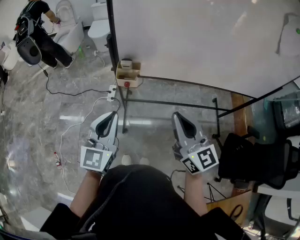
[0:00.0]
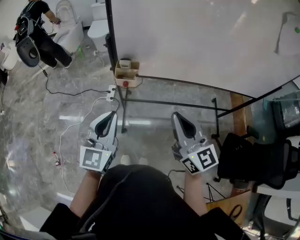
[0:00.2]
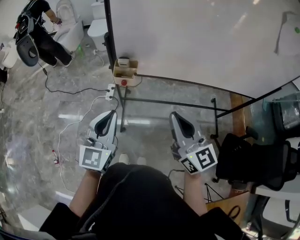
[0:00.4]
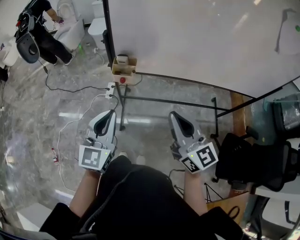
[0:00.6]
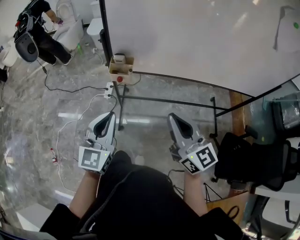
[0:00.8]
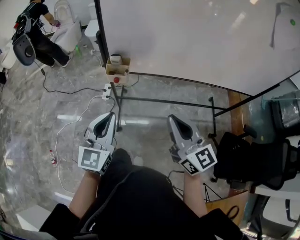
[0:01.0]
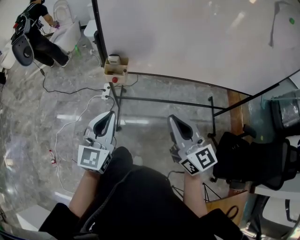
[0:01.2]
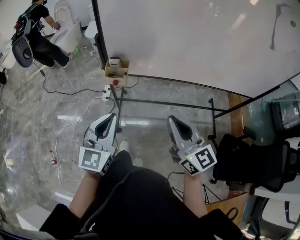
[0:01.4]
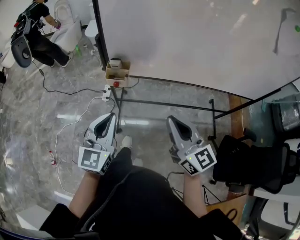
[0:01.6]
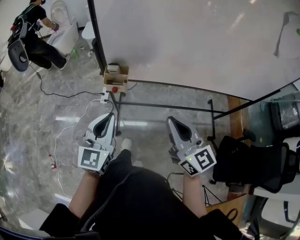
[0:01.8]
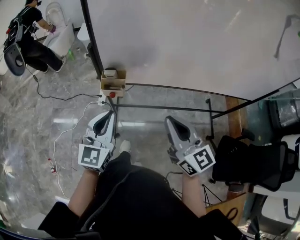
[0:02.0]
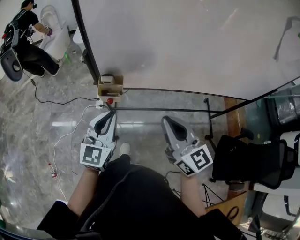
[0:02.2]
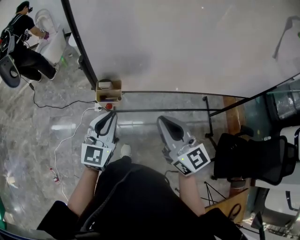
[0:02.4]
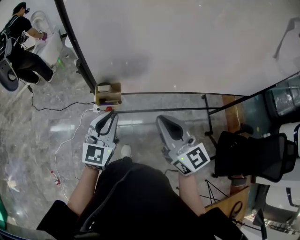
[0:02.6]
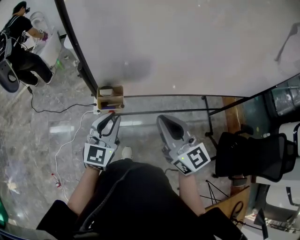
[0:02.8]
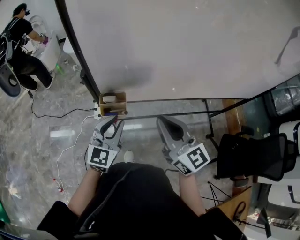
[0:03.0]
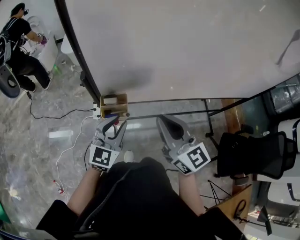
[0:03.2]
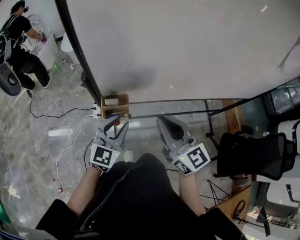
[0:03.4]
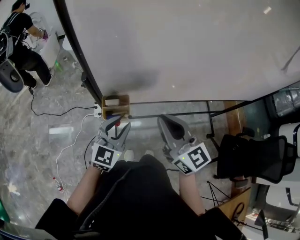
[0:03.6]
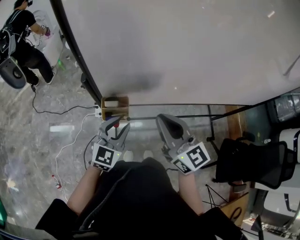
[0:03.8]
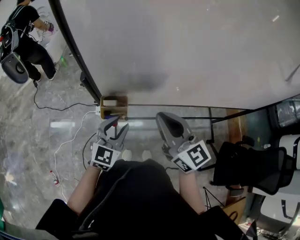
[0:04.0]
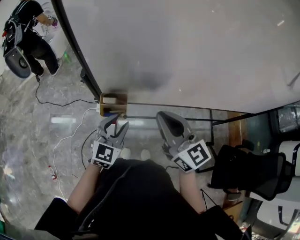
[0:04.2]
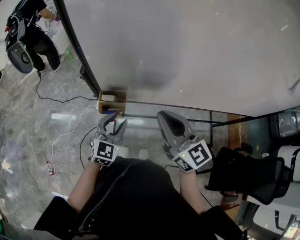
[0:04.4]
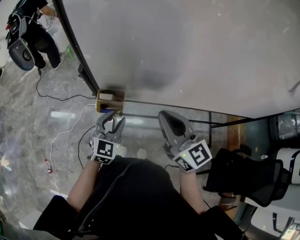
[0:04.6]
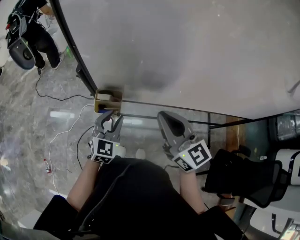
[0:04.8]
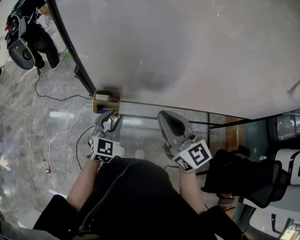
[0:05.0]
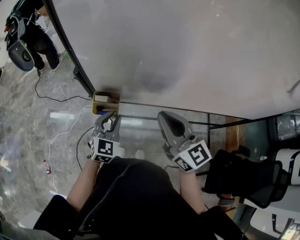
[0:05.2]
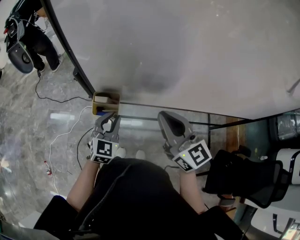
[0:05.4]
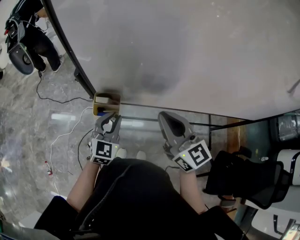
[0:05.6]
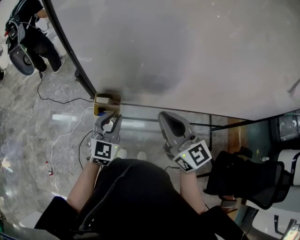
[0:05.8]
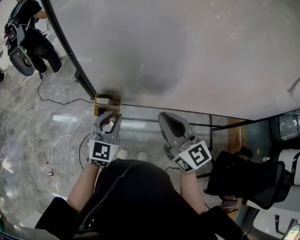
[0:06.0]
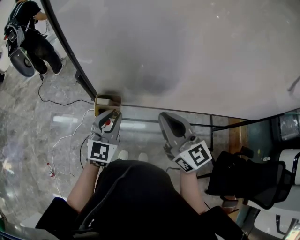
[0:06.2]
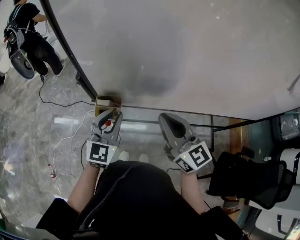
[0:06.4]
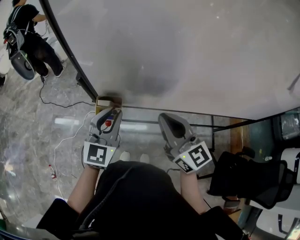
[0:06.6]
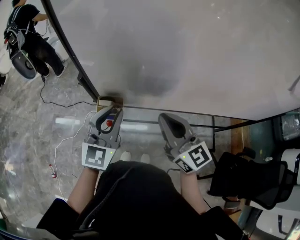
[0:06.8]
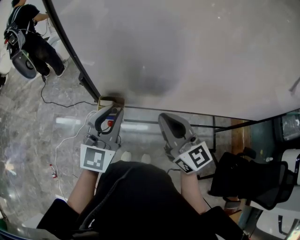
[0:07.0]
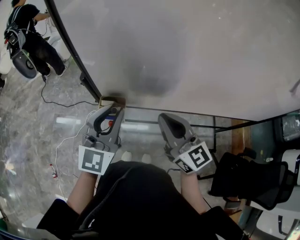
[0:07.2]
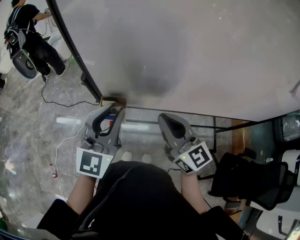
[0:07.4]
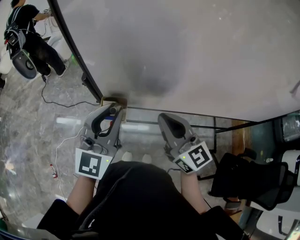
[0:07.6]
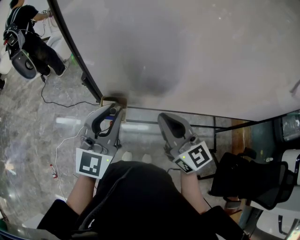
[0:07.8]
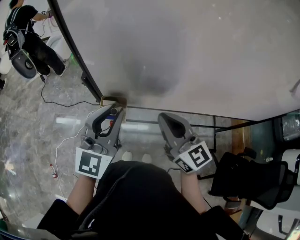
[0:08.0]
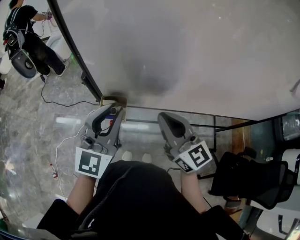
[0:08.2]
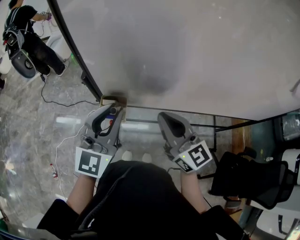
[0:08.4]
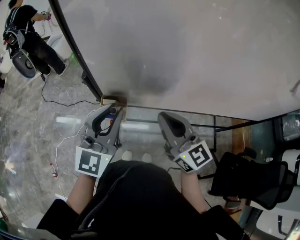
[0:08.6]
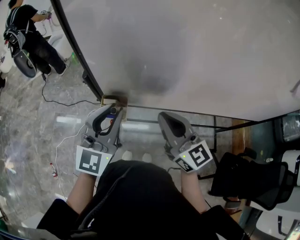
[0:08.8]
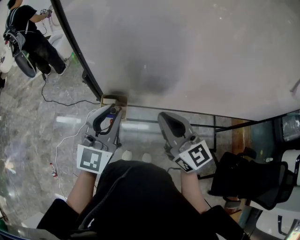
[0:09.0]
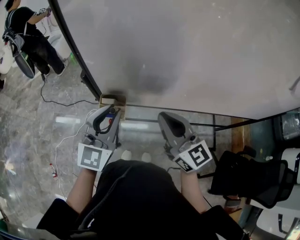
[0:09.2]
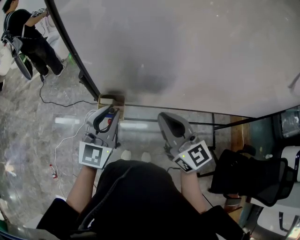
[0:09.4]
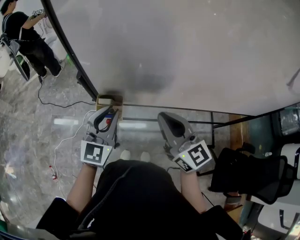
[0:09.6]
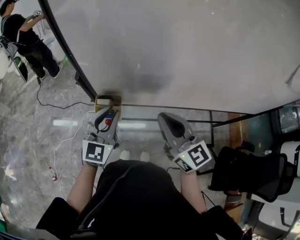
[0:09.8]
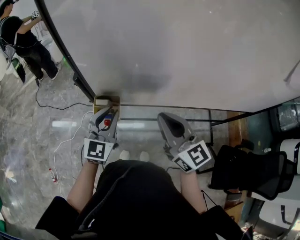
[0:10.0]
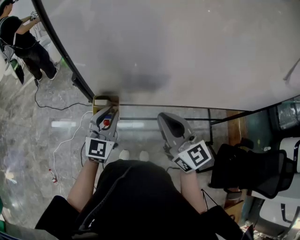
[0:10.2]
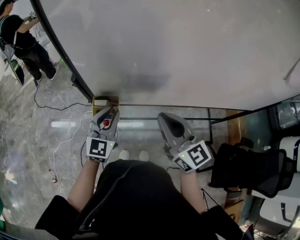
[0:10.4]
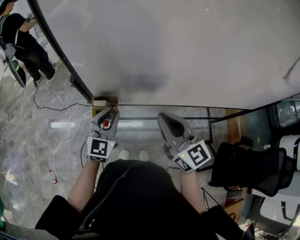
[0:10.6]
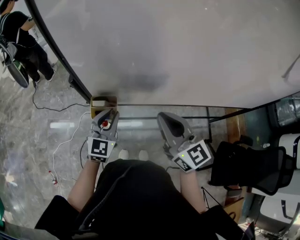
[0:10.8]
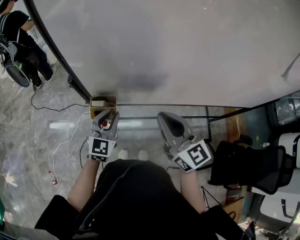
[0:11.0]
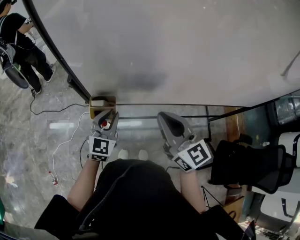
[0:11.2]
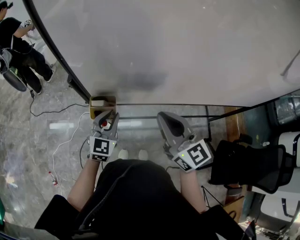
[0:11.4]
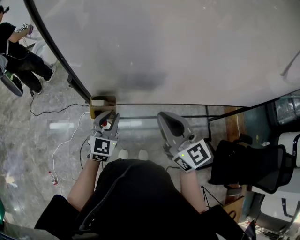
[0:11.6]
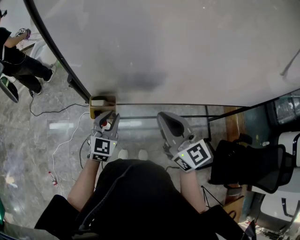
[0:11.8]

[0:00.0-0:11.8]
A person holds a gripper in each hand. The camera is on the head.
0:00.0 to 0:01.4: The left gripper travels to the right by roughly 5 cm. The right gripper shifts by roughly 5 cm.
0:01.4 to 0:03.0: Both grippers travel together forward, about 20 cm.
0:03.0 to 0:04.4: The right gripper shifts roughly 5 cm forward; the left gripper heads downward, covering roughly 5 cm.
0:04.4 to 0:06.0: The left gripper travels upward by about 5 cm, and closes.
0:06.0 to 0:07.4: The left gripper shifts approximately 15 cm upward.
0:07.4 to 0:08.8: Both grippers stay about where they are.
0:08.8 to 0:10.4: The left gripper shifts some 15 cm downward.
0:10.4 to 0:11.8: The left gripper moves downward, about 5 cm.

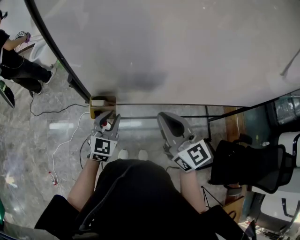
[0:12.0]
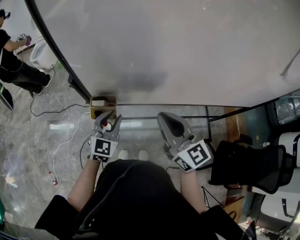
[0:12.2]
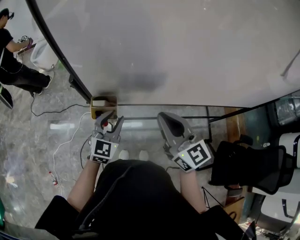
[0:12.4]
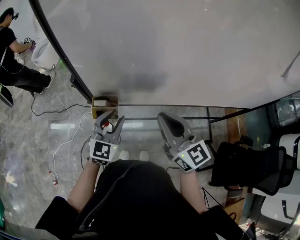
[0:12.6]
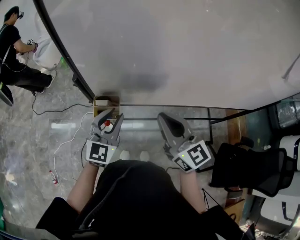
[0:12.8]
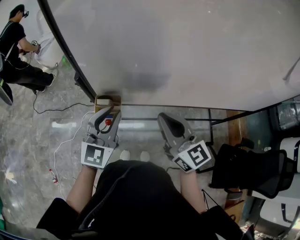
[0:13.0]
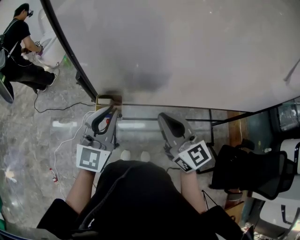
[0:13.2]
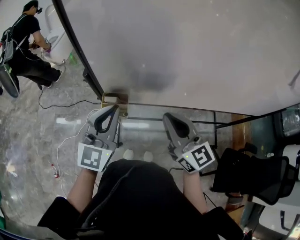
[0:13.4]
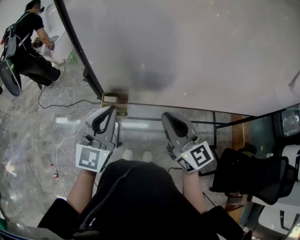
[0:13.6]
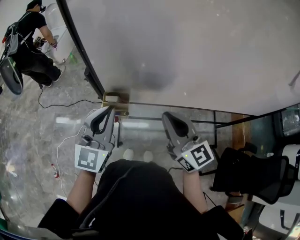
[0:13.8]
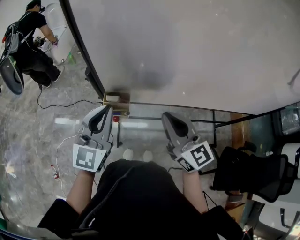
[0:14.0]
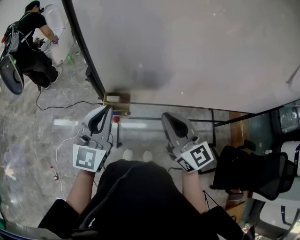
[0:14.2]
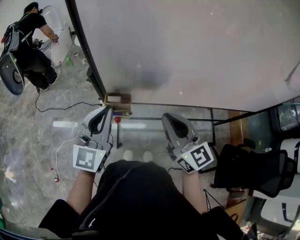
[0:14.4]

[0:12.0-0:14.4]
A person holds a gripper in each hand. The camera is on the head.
0:12.0 to 0:13.2: The left gripper heads upward, covering approximately 15 cm, and swivels about 20 degrees.
0:13.2 to 0:14.4: The left gripper travels to the left by about 5 cm.

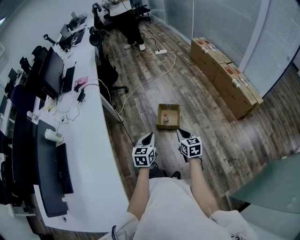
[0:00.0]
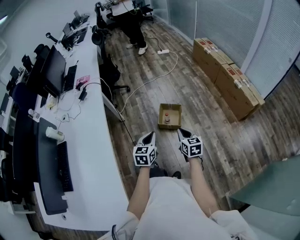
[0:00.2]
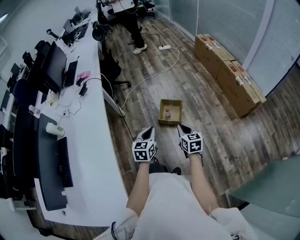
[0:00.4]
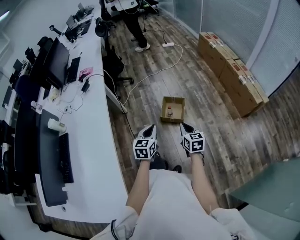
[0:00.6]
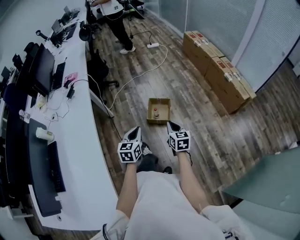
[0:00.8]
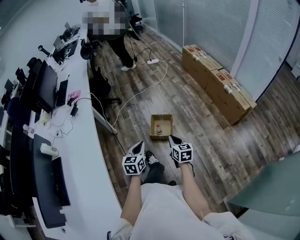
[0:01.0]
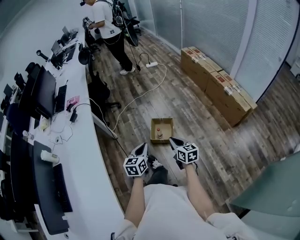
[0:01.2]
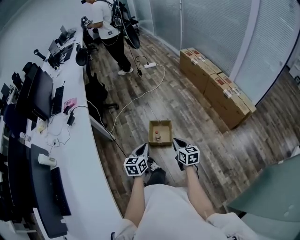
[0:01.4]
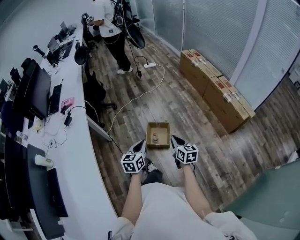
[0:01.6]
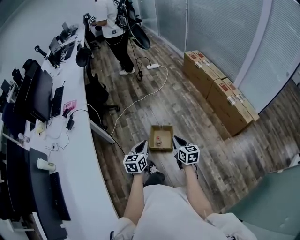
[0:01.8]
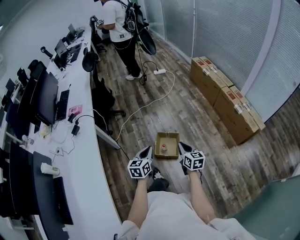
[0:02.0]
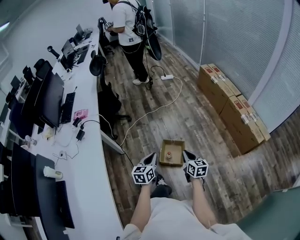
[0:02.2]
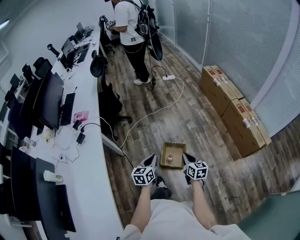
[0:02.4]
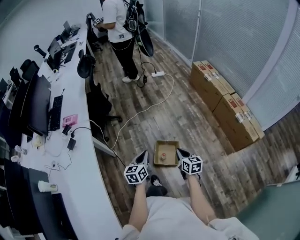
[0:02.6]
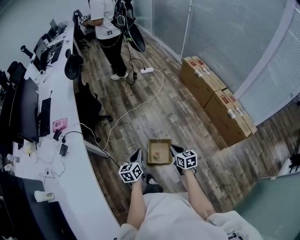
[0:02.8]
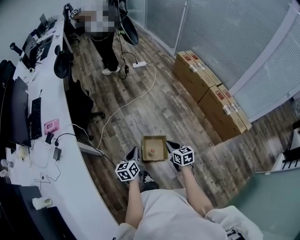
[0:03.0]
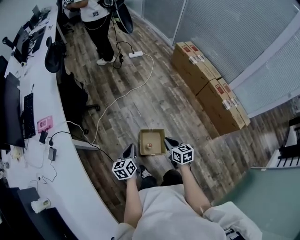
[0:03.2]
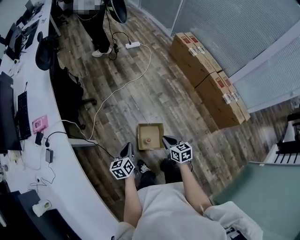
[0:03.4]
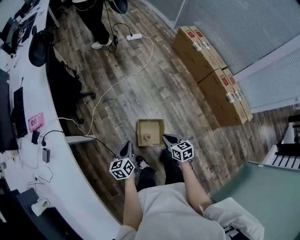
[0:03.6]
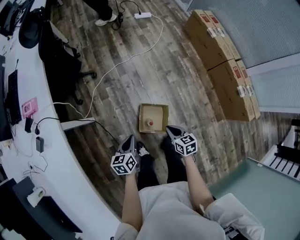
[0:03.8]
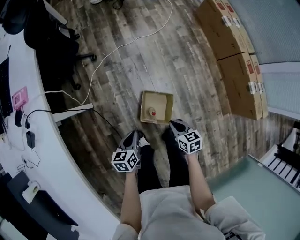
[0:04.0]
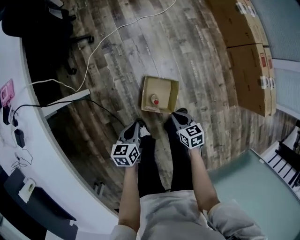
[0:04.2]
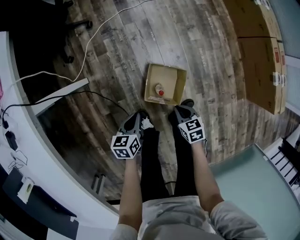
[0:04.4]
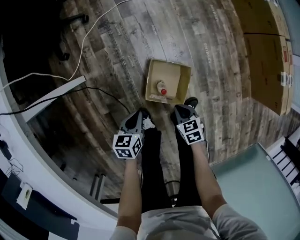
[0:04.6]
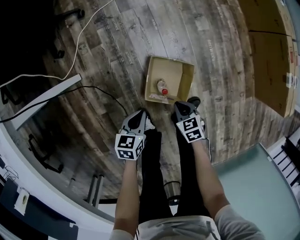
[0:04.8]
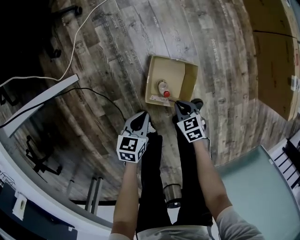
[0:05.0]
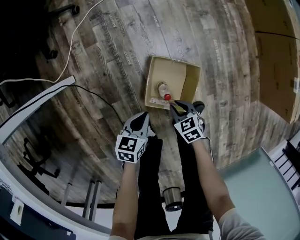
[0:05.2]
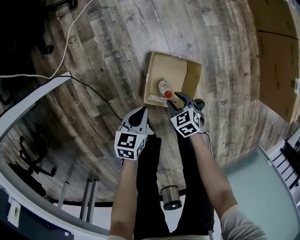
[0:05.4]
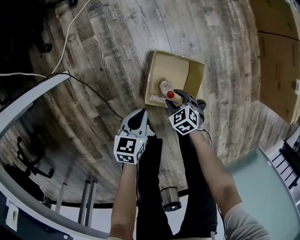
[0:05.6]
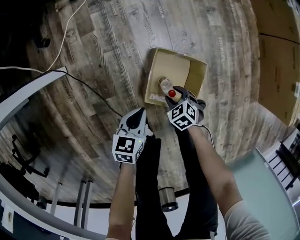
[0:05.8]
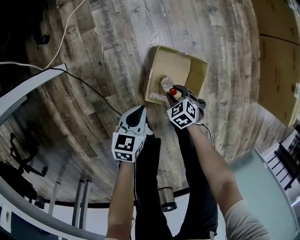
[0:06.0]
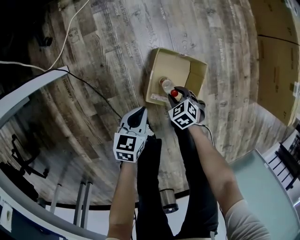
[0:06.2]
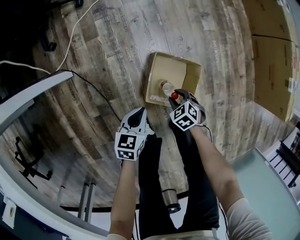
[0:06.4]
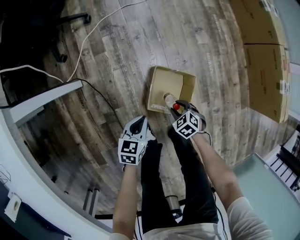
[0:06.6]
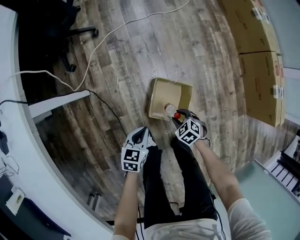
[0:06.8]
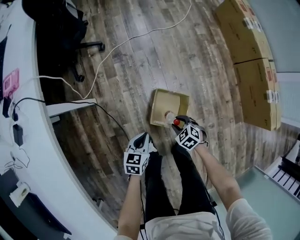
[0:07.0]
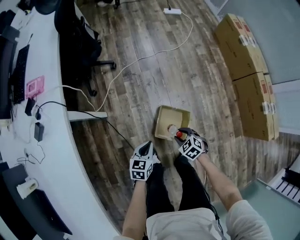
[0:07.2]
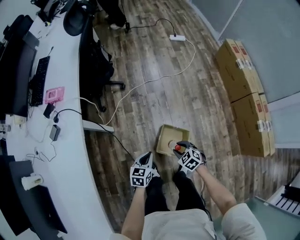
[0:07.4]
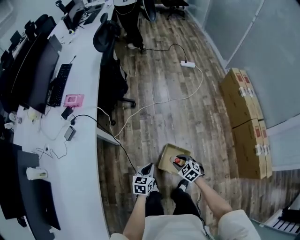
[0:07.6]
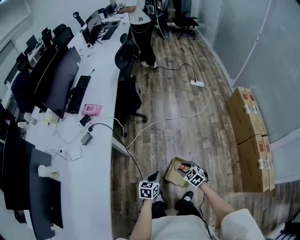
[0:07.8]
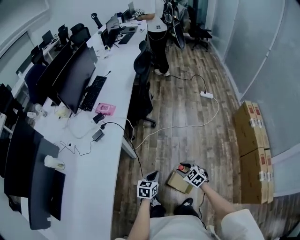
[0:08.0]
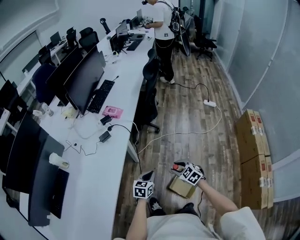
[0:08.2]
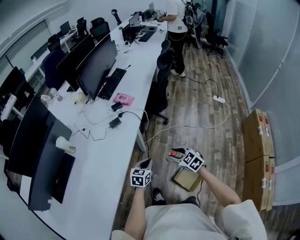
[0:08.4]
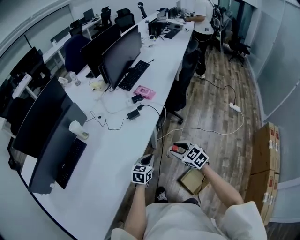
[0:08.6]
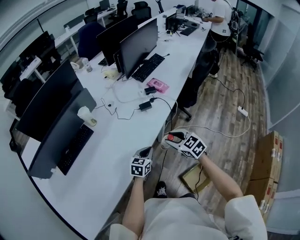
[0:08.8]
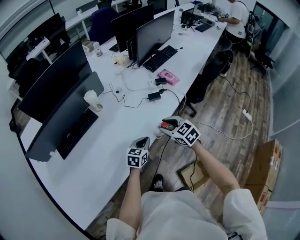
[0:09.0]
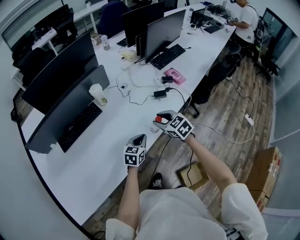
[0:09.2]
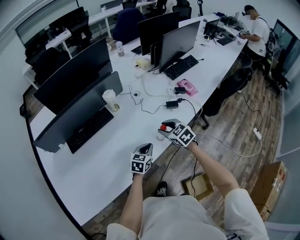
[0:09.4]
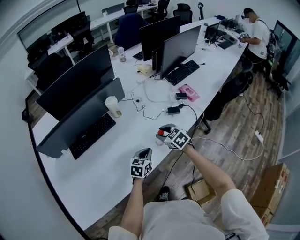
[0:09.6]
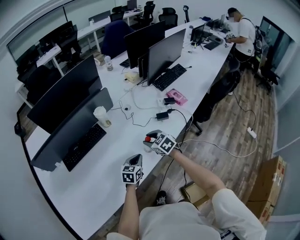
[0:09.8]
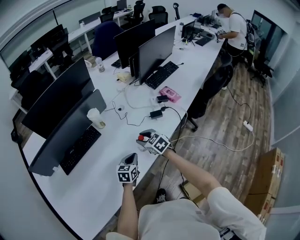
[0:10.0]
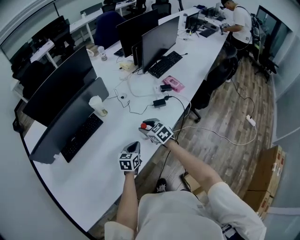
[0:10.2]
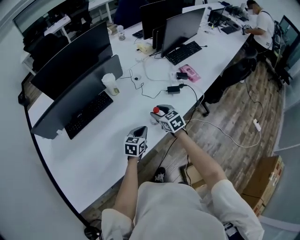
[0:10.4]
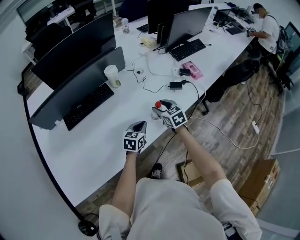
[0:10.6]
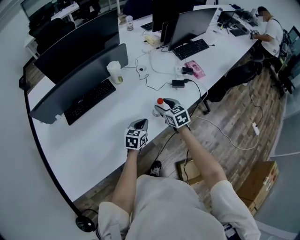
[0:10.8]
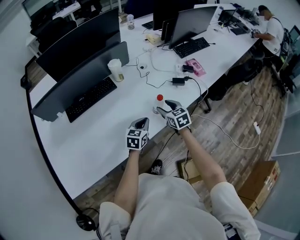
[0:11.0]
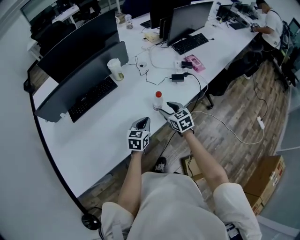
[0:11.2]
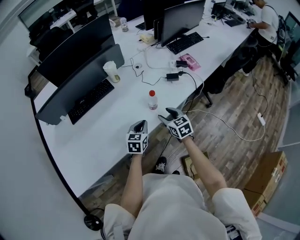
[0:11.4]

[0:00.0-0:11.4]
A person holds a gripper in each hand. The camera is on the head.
0:00.0 to 0:01.4: The left gripper heads forward, covering roughly 10 cm; the right gripper goes some 10 cm forward and to the right.
0:01.4 to 0:02.8: The two grippers go some 30 cm forward.
0:02.8 to 0:04.2: The grippers both shift downward by roughly 30 cm. The left gripper rotates approximately 20 degrees; the right gripper changes its angle by approximately 20 degrees.
0:04.2 to 0:05.6: The grippers both shift downward by about 35 cm. The right gripper swivels roughly 40 degrees, and opens.
0:05.6 to 0:07.2: Both grippers move upward, about 35 cm.
0:07.2 to 0:08.6: The left gripper shifts by about 40 cm, and changes its angle by approximately 40 degrees; the right gripper travels upward by some 40 cm, and changes its angle by about 50 degrees.
0:08.6 to 0:10.0: Both grippers travel together to the left and forward, roughly 25 cm. The left gripper changes its angle by about 20 degrees.
0:10.0 to 0:11.4: The left gripper is displaced backward by approximately 10 cm, while the right gripper heads backward and to the right, covering some 15 cm.
